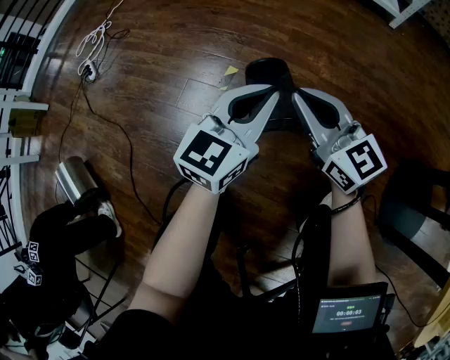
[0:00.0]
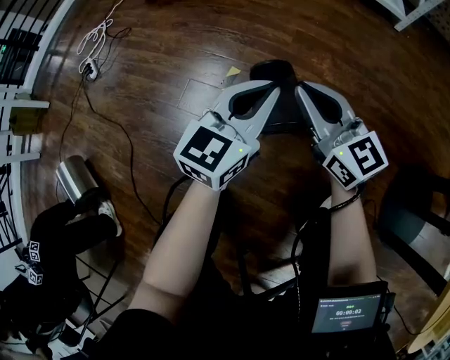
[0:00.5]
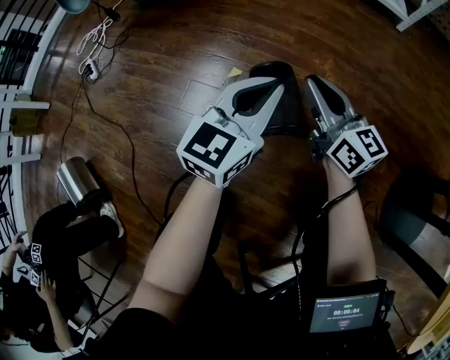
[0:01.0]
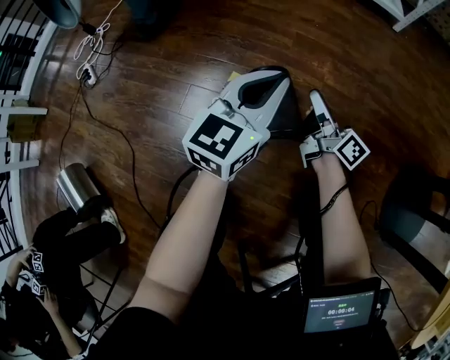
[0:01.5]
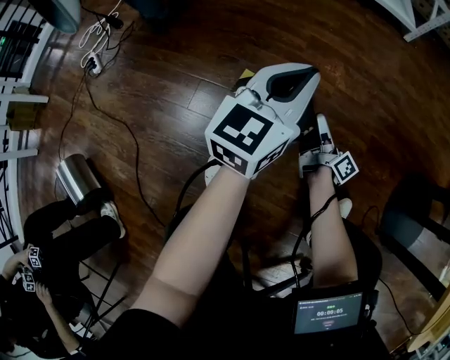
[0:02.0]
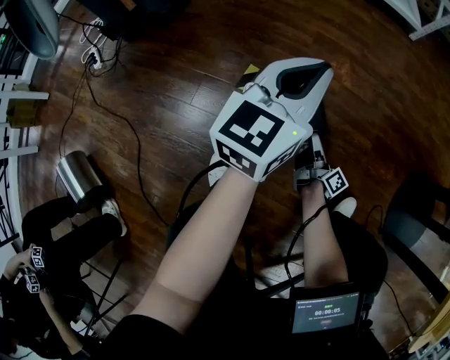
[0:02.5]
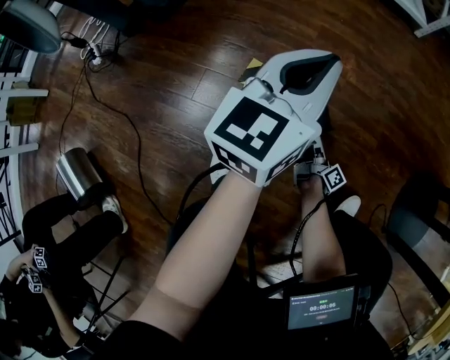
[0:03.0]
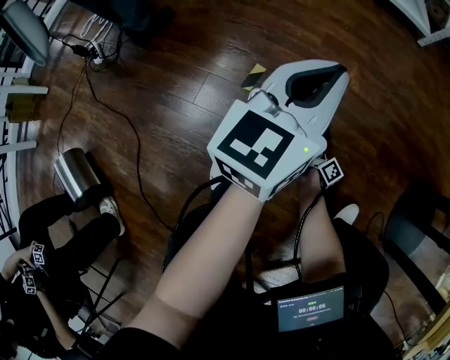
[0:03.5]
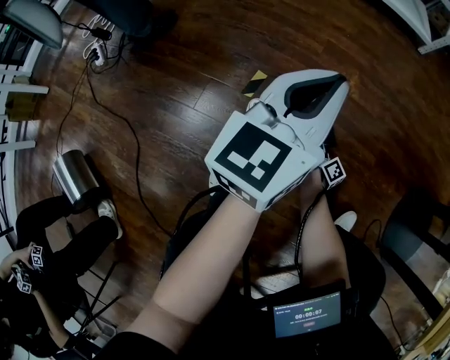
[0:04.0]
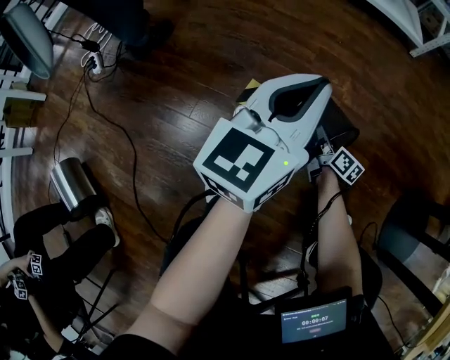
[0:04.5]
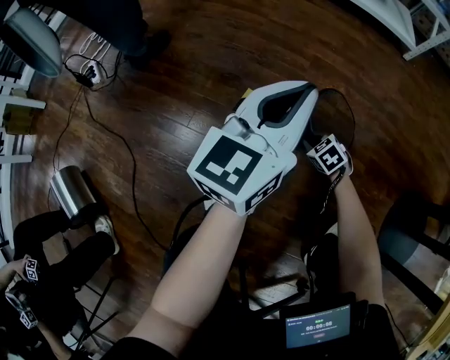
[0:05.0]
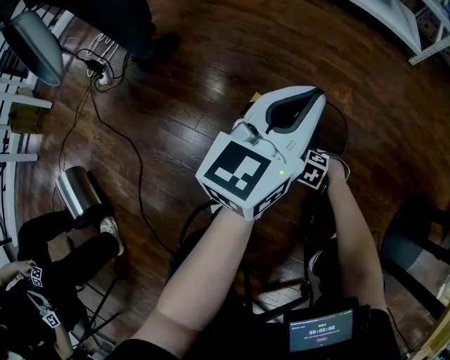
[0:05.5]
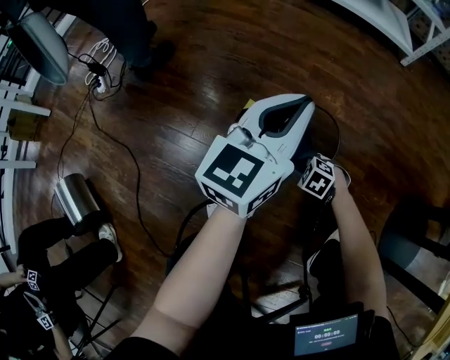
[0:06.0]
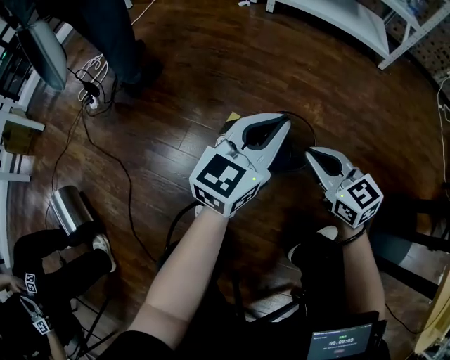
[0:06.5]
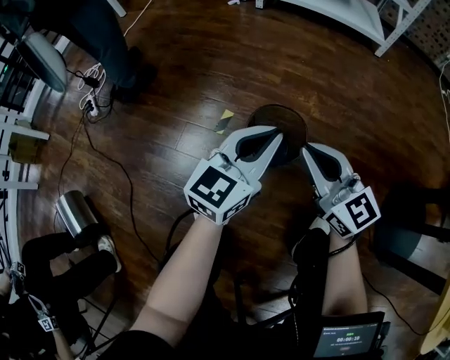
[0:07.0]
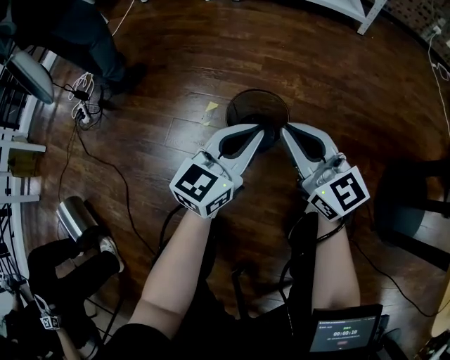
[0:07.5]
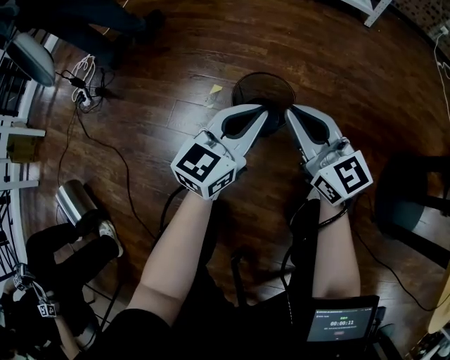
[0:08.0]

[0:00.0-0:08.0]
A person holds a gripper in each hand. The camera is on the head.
0:00.0 to 0:02.0: The left gripper moves forward, roughly 5 cm, while the right gripper is displaced downward by approximately 25 cm, rotates around the line of its fingers by roughly 70 degrees, clockwise from behind, and opens its fingers.
0:02.0 to 0:04.0: The right gripper shifts about 15 cm downward, and closes its fingers.
0:04.0 to 0:06.0: The right gripper swings up and down, approximately 5 cm each way, with 2 reversals, tips its fingers downward by roughly 70 degrees, and opens up.
0:06.0 to 0:08.0: The left gripper moves roughly 15 cm. The right gripper heads upward, covering roughly 35 cm, points its fingers approximately 70 degrees further upward, and closes its fingers.

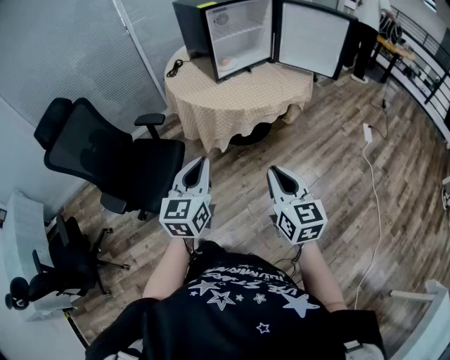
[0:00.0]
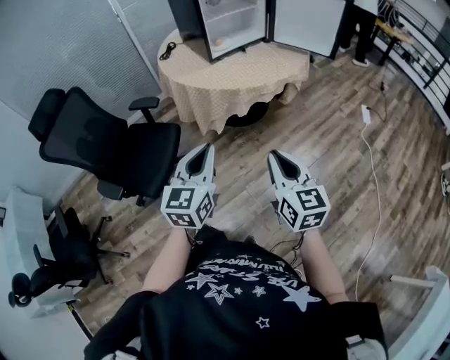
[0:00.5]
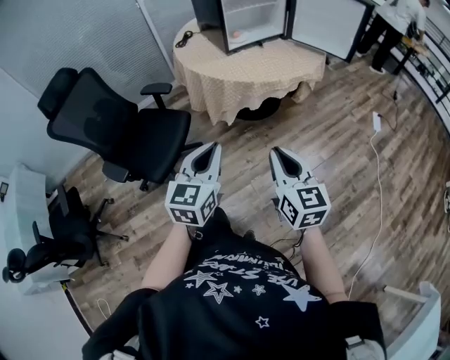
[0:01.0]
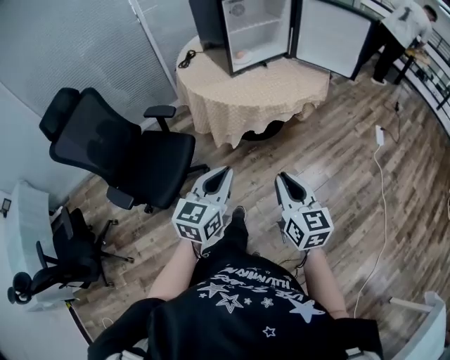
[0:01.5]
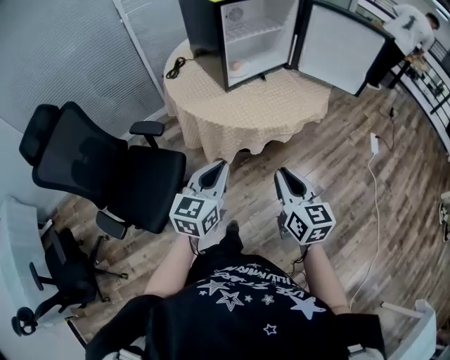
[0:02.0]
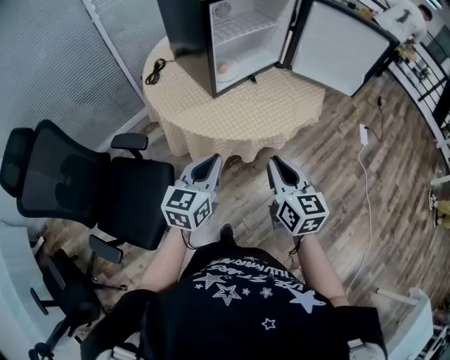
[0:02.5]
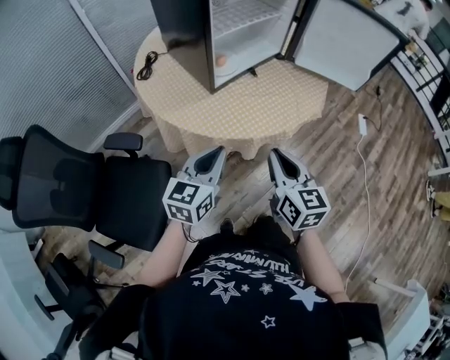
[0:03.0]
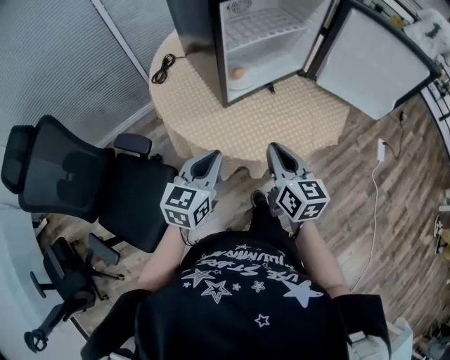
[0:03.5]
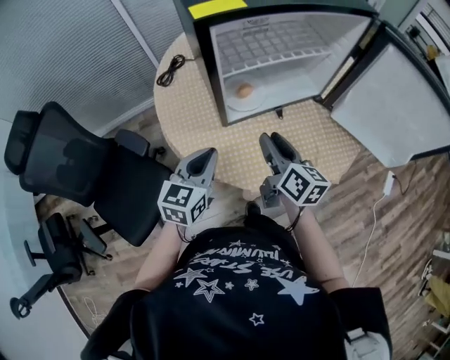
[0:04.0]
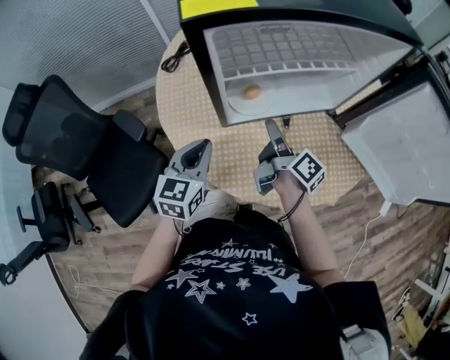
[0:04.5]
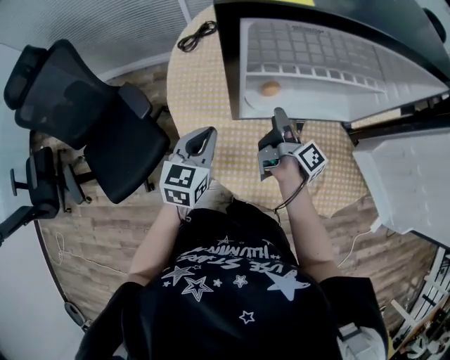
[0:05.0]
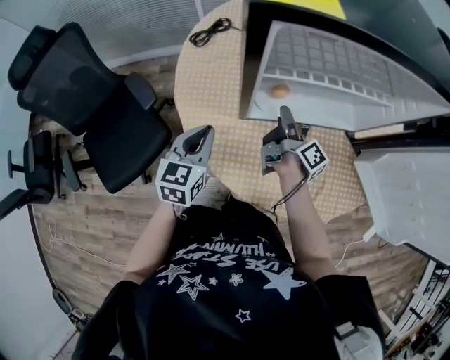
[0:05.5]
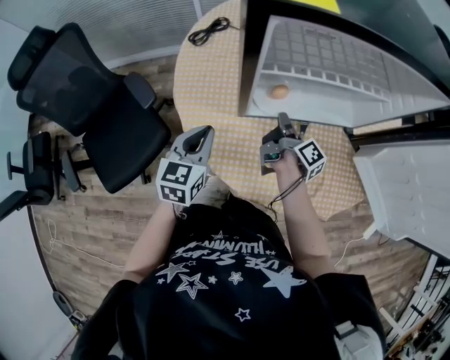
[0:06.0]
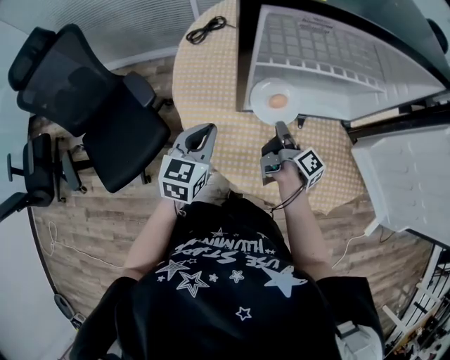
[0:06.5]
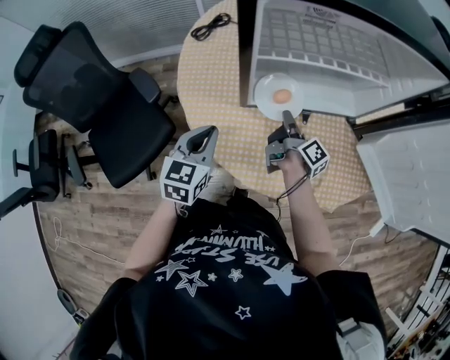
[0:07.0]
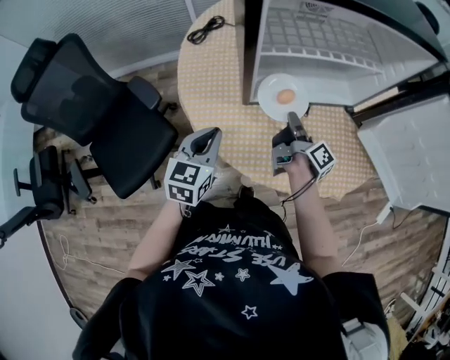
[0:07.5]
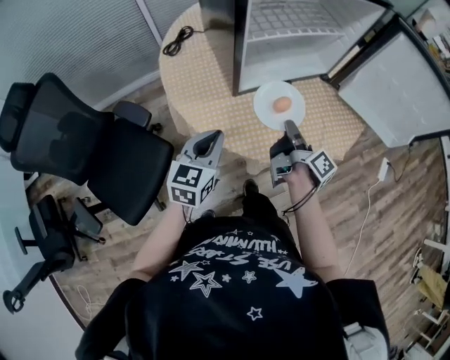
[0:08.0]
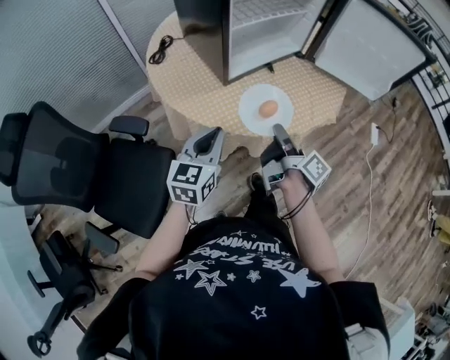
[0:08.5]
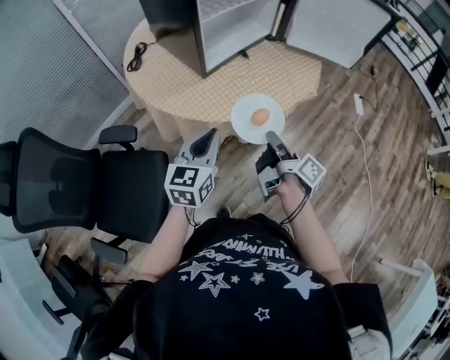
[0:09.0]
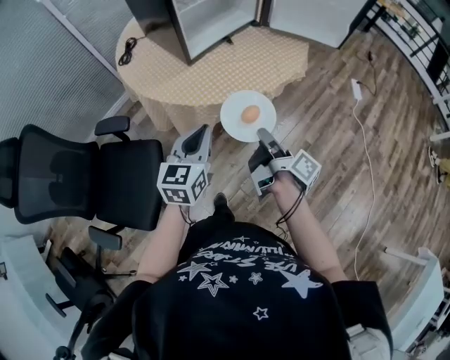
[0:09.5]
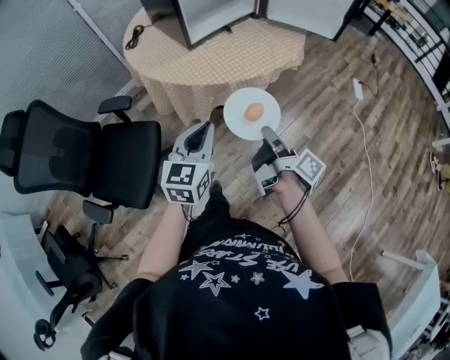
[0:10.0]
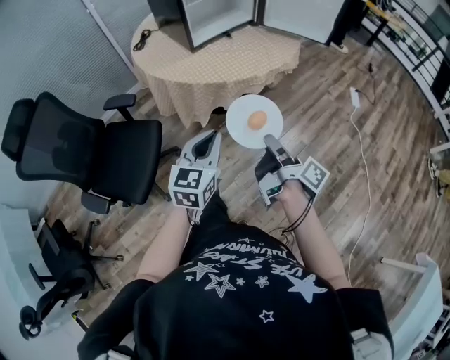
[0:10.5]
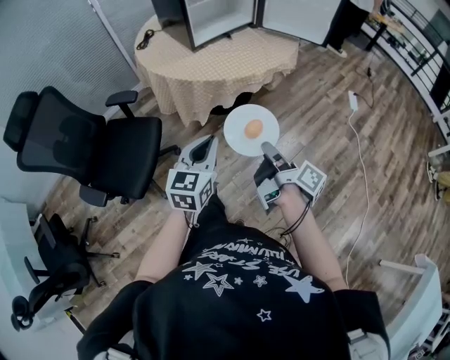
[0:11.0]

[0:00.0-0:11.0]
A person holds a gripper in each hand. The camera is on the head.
0:00.0 to 0:02.0: Both grippers move forward, roughly 20 cm.
0:02.0 to 0:03.5: The two grippers go roughly 25 cm forward.
0:03.5 to 0:05.5: The right gripper moves forward and downward, some 35 cm, twists approximately 60 degrees clockwise, seen from behind, and opens. Meanwhile the left gripper shifts about 15 cm forward and downward, and changes its angle by roughly 30 degrees.
0:05.5 to 0:07.5: The two grippers go approximately 5 cm backward. The right gripper closes up.
0:07.5 to 0:09.0: The left gripper changes place by some 15 cm, and turns by some 30 degrees. Meanwhile the right gripper shifts by approximately 35 cm, and turns by roughly 30 degrees.
0:09.0 to 0:11.0: The left gripper heads backward and to the right, covering about 30 cm. Meanwhile the right gripper heads backward, covering about 25 cm.

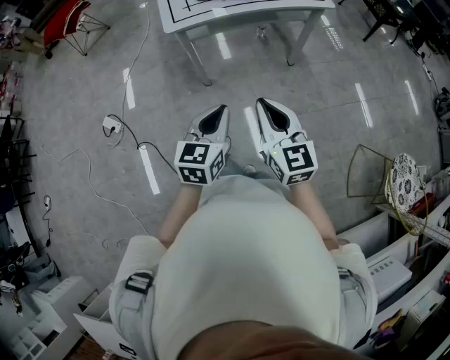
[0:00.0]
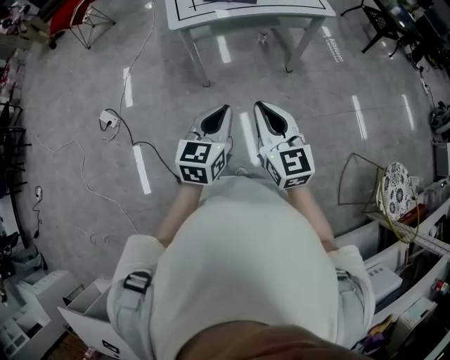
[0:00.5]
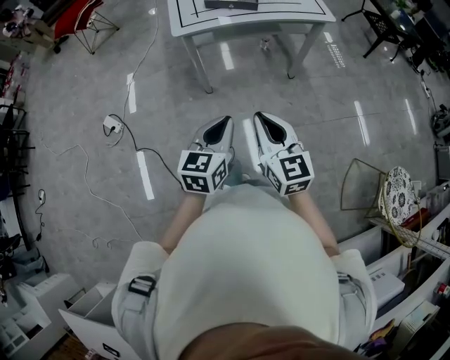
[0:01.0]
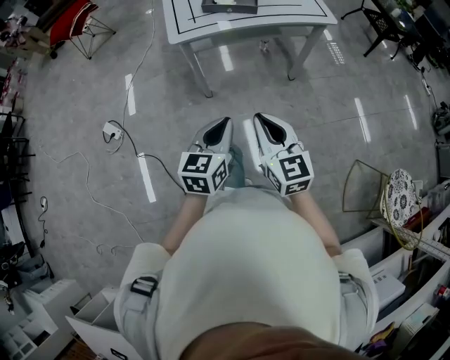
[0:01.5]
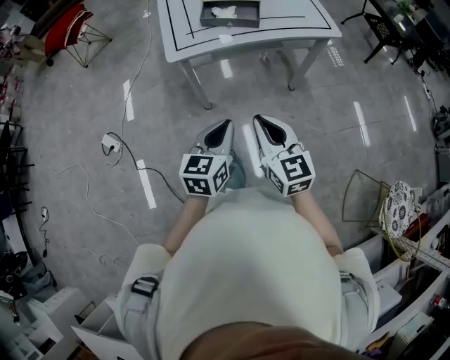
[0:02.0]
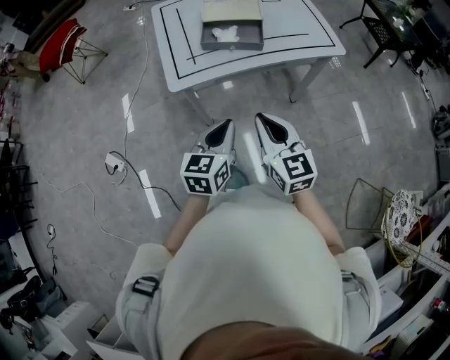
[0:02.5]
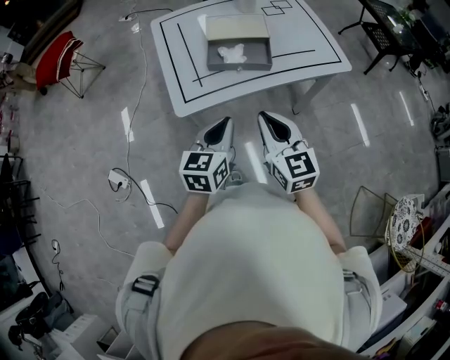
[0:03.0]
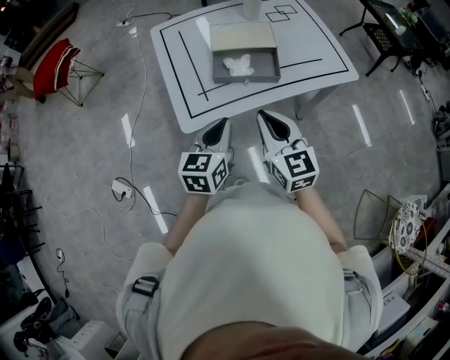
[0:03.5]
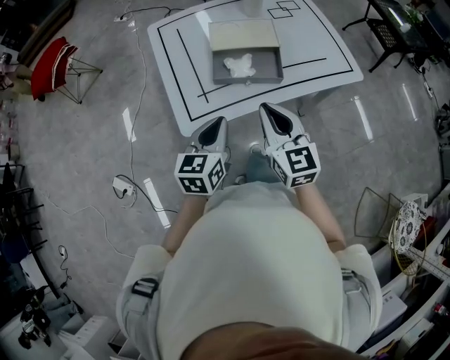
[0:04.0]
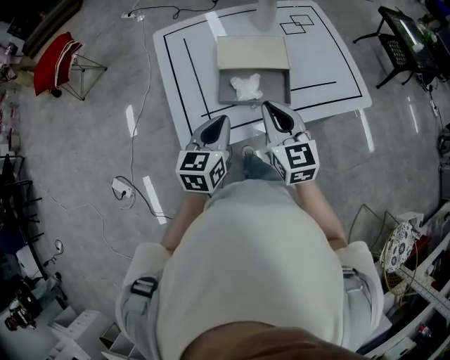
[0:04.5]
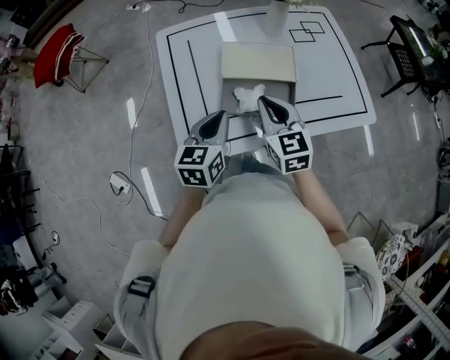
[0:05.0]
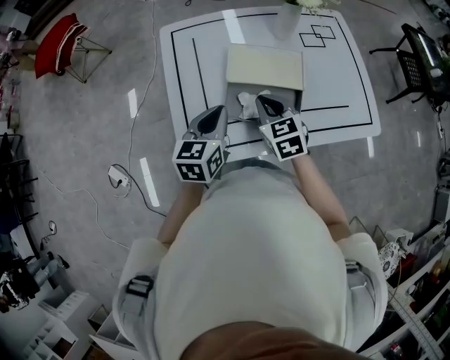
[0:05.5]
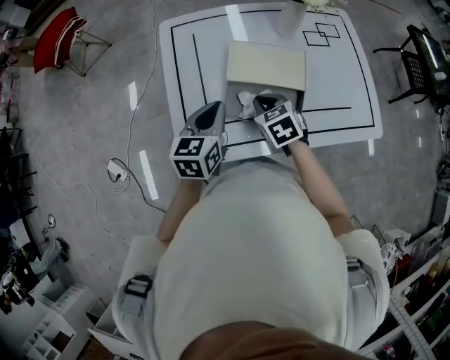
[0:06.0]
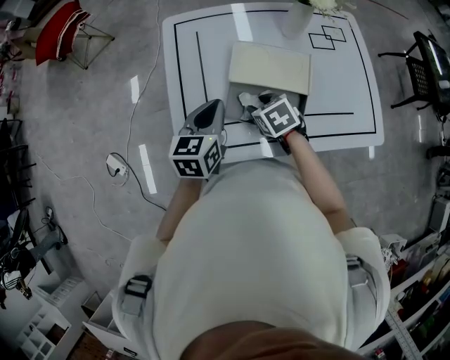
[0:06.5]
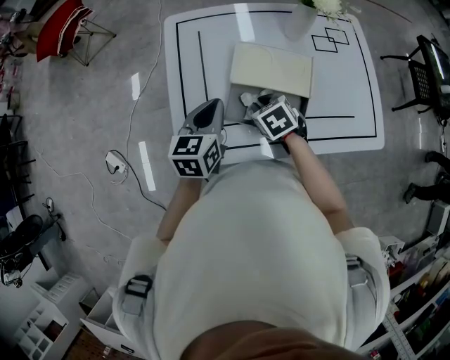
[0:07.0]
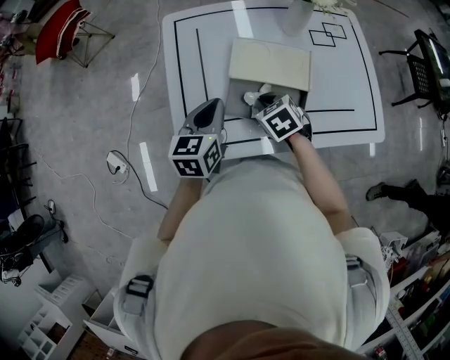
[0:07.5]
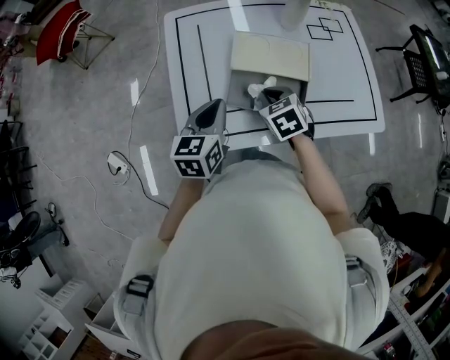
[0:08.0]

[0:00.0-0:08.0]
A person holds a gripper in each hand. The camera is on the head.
0:00.0 to 0:02.0: Both grippers move forward, about 10 cm.
0:02.0 to 0:04.0: The two grippers go approximately 30 cm forward.
0:04.0 to 0:06.0: The left gripper heads forward, covering roughly 20 cm; the right gripper moves forward and downward, some 25 cm, and angles its fingers downward, by about 40 degrees.
0:06.0 to 0:08.0: The right gripper opens, then closes again.
